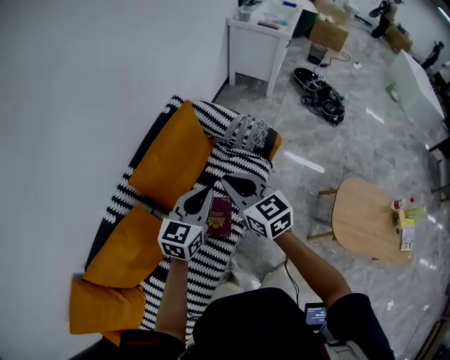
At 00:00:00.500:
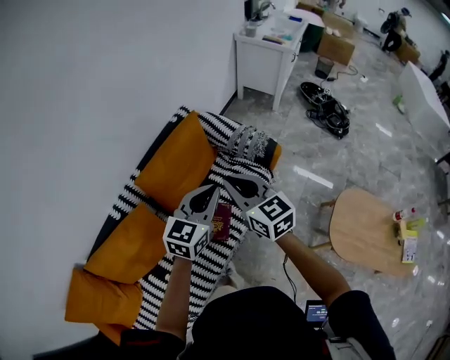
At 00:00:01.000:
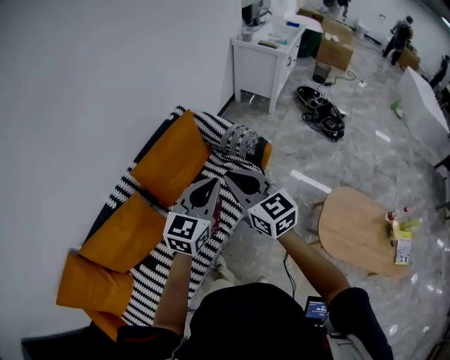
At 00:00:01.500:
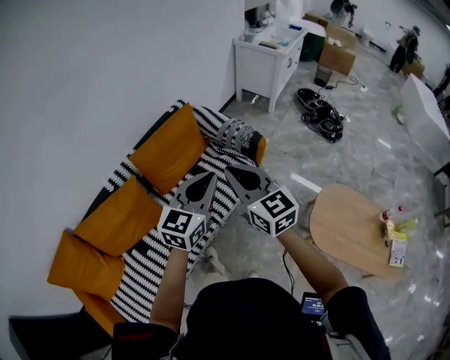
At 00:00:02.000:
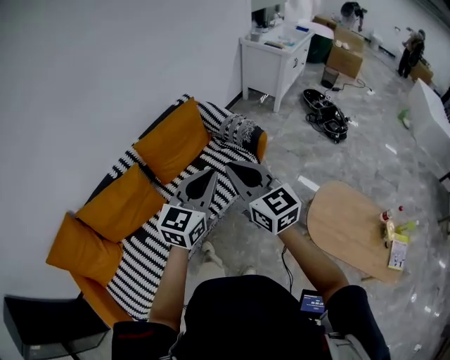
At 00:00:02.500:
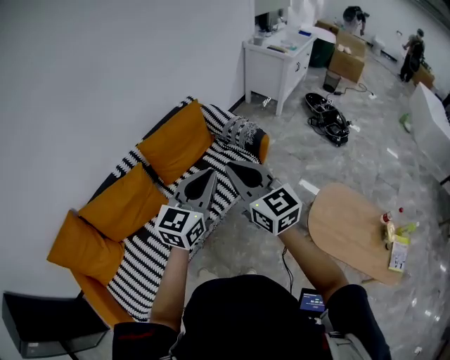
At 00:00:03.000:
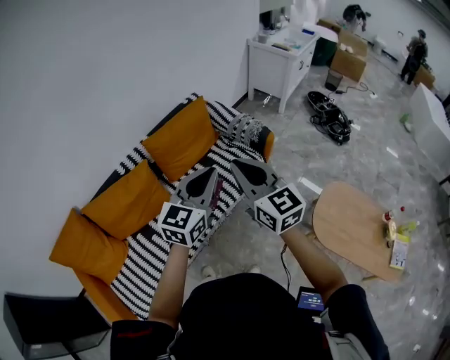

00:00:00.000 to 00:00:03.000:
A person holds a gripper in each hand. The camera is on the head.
00:00:00.000 to 00:00:01.500: Both grippers travel together backward, to the right and upward, roughly 25 cm.
00:00:01.500 to 00:00:03.000: Both grippers move backward, about 5 cm.

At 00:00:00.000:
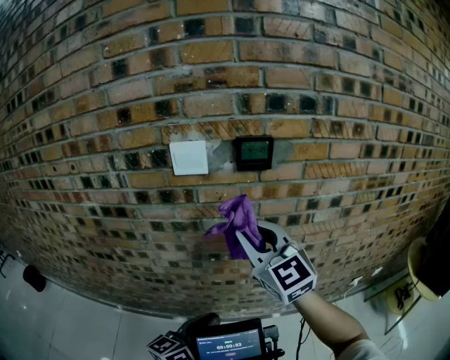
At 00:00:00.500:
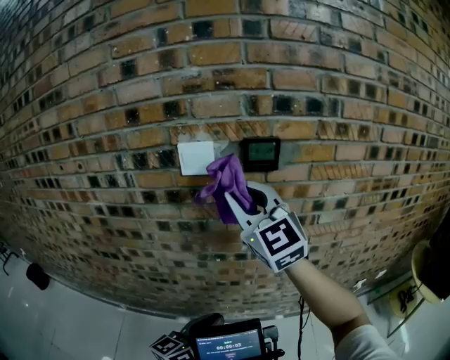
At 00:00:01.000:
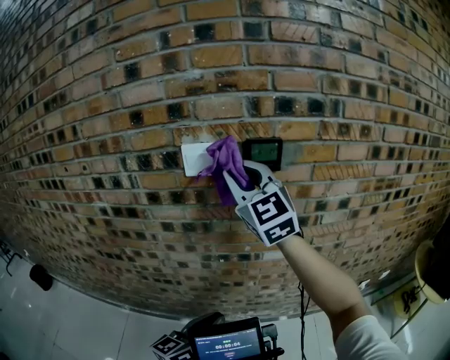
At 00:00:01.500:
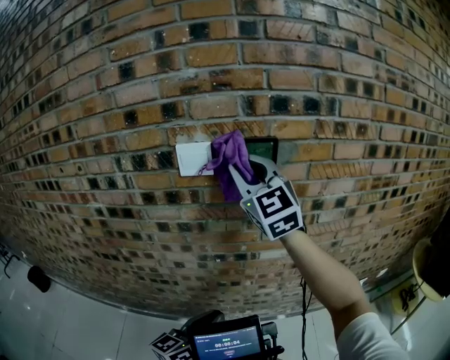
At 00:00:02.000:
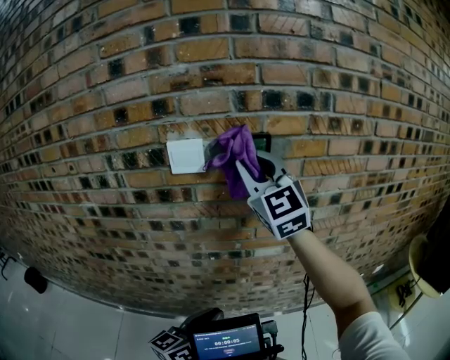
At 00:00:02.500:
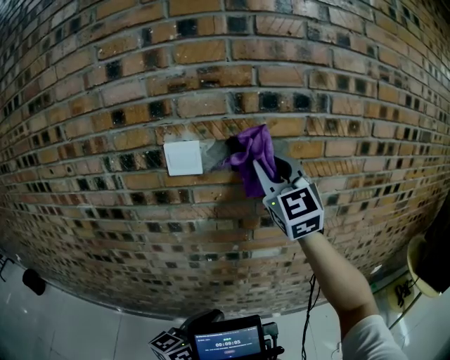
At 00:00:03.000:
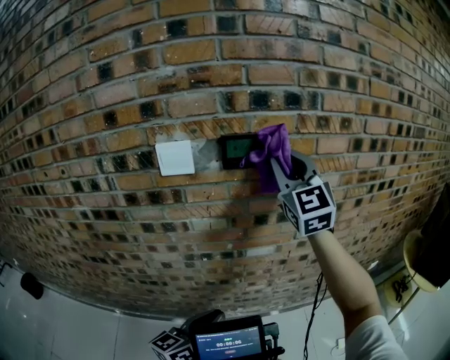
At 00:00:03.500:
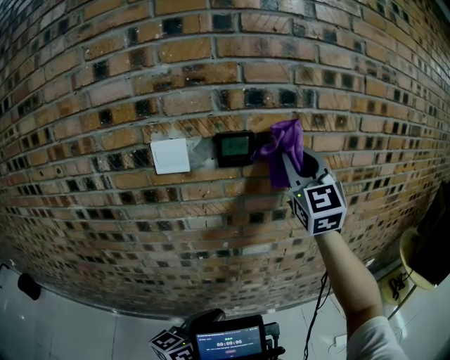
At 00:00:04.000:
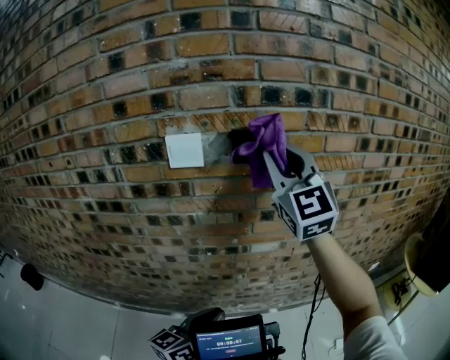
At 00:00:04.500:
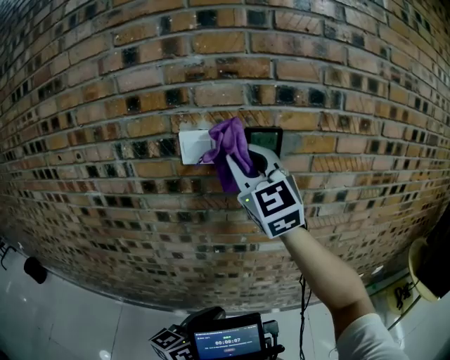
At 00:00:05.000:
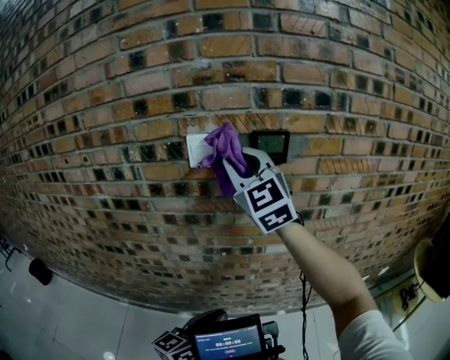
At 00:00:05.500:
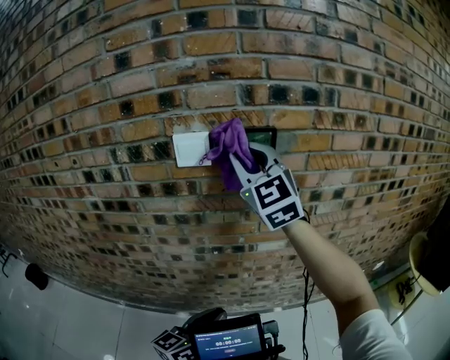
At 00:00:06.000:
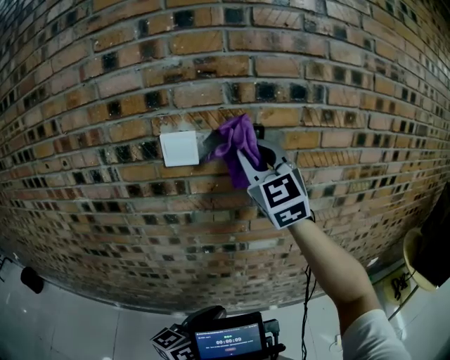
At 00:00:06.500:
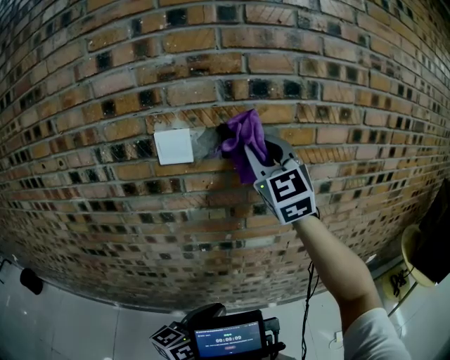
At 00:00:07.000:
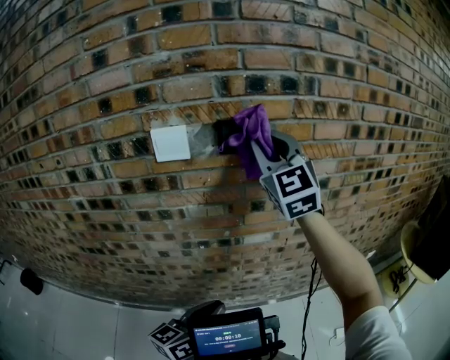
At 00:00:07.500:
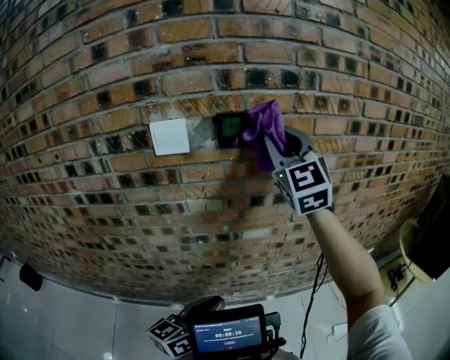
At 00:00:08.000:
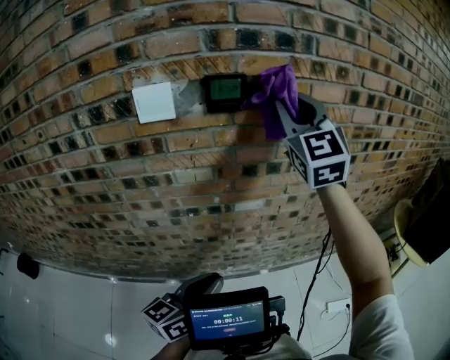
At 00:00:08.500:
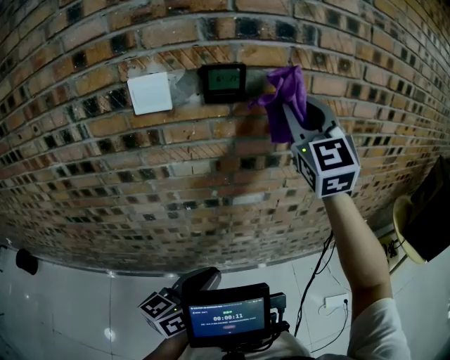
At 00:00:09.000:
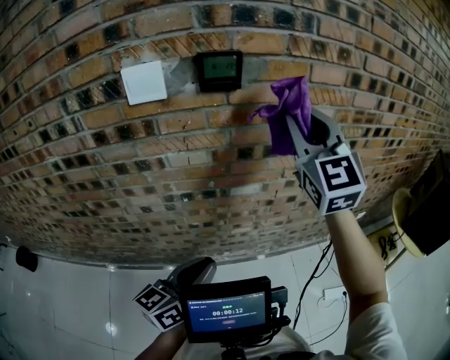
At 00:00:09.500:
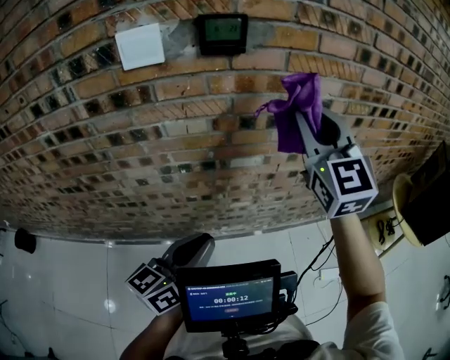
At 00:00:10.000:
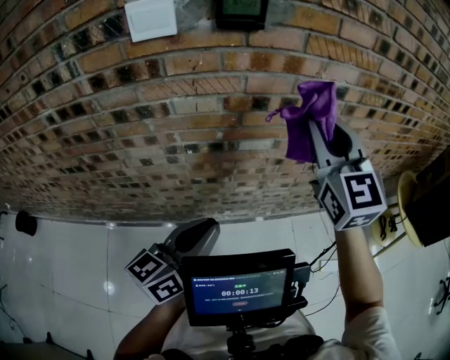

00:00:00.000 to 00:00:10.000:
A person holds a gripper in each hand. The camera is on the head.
00:00:00.000 to 00:00:02.000: The right gripper shifts about 15 cm upward and forward.
00:00:02.000 to 00:00:04.000: The right gripper goes approximately 5 cm to the right.
00:00:04.000 to 00:00:06.000: The right gripper moves roughly 15 cm to the left and comes back.
00:00:06.000 to 00:00:08.000: The right gripper moves to the right, approximately 15 cm.
00:00:08.000 to 00:00:10.000: The right gripper heads downward and backward, covering about 15 cm.

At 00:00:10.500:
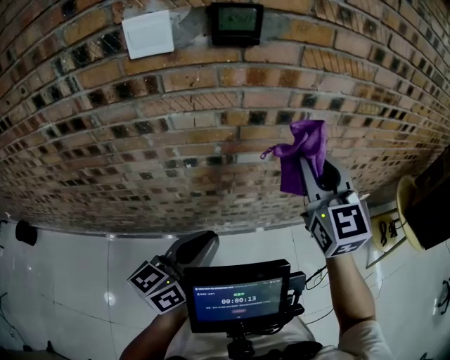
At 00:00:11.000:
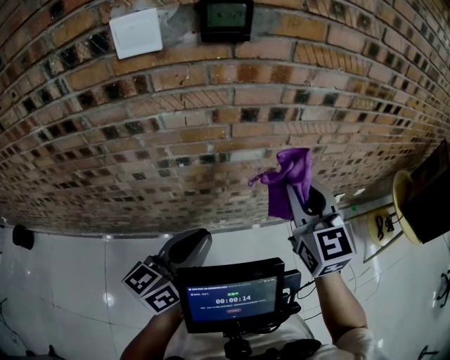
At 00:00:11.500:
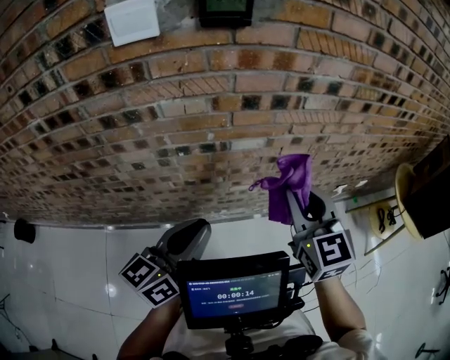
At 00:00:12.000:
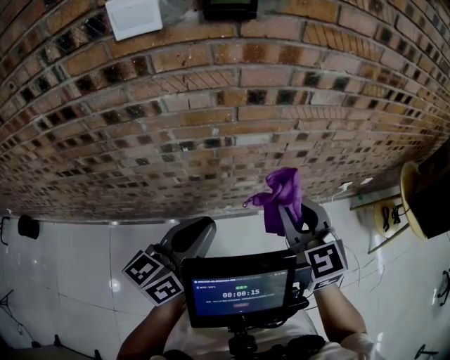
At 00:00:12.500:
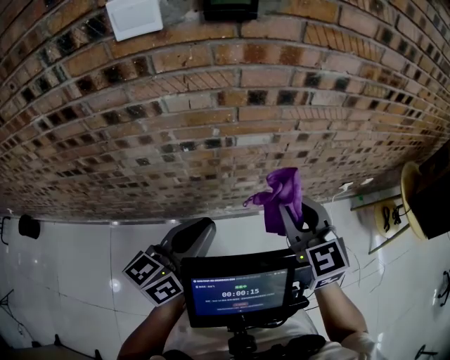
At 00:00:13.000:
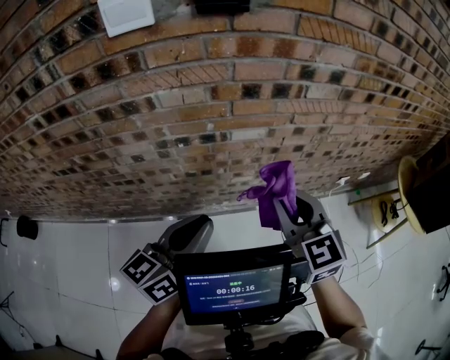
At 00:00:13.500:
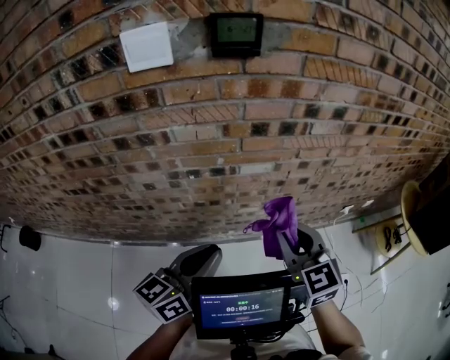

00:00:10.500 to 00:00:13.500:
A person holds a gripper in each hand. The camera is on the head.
00:00:10.500 to 00:00:12.000: The right gripper is displaced downward and backward by approximately 15 cm.
00:00:12.000 to 00:00:13.500: The grippers move only a little.

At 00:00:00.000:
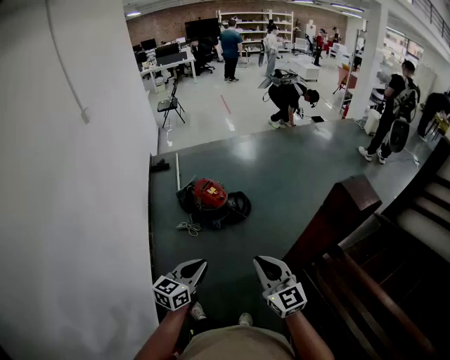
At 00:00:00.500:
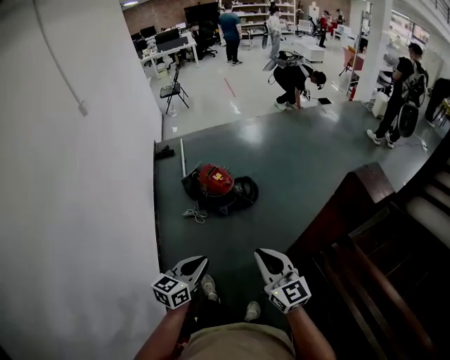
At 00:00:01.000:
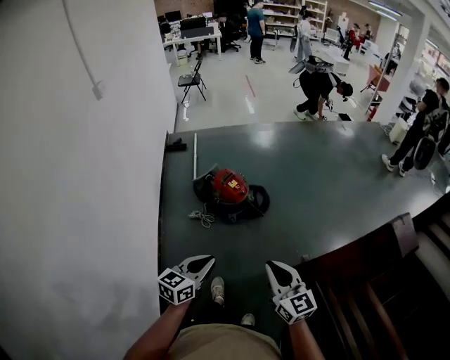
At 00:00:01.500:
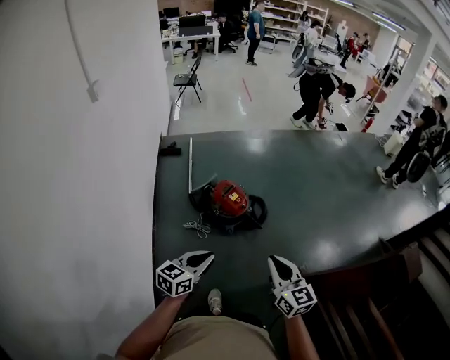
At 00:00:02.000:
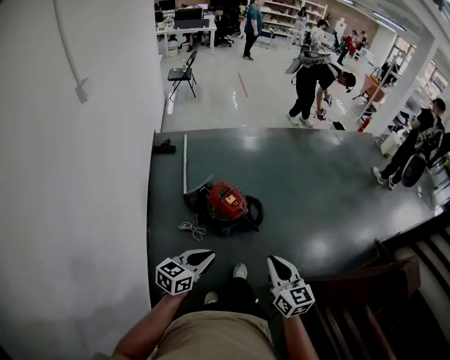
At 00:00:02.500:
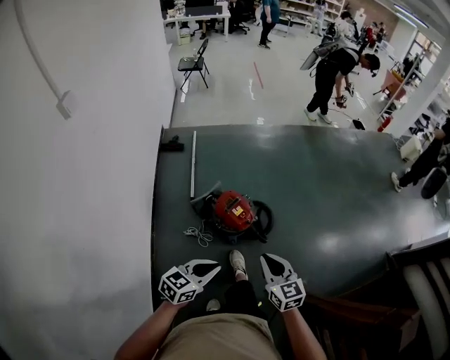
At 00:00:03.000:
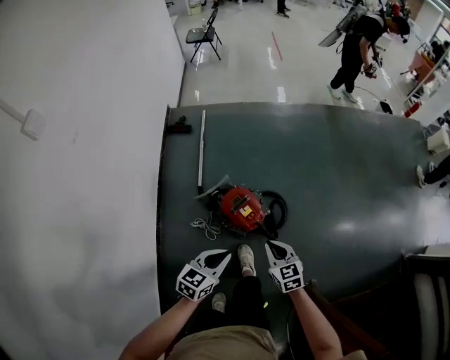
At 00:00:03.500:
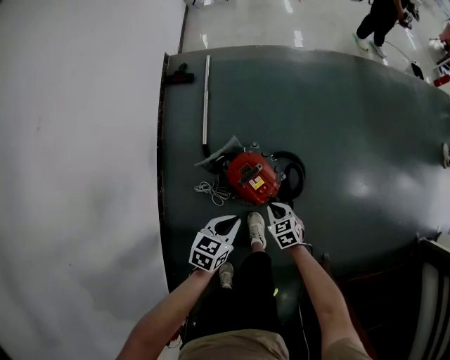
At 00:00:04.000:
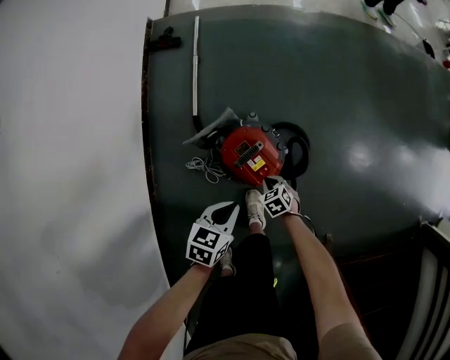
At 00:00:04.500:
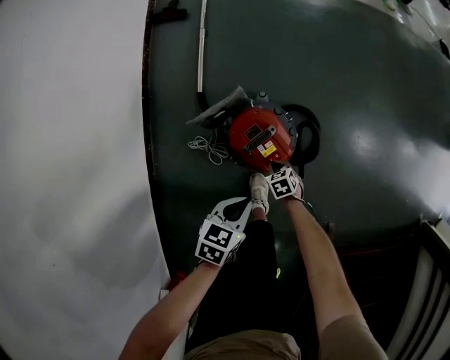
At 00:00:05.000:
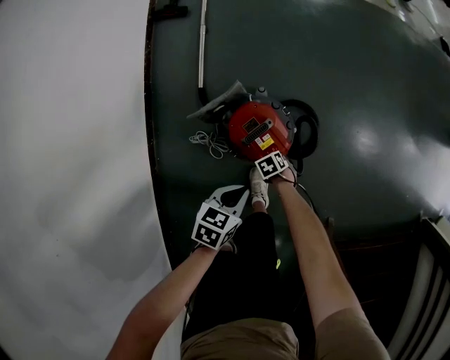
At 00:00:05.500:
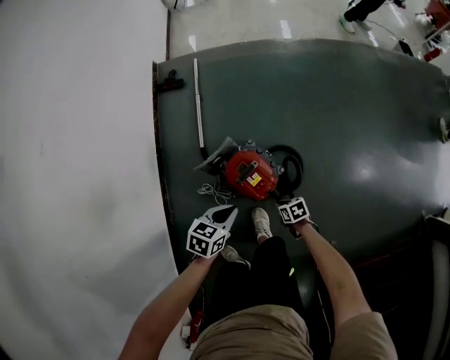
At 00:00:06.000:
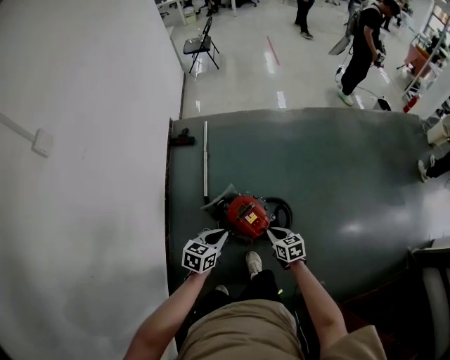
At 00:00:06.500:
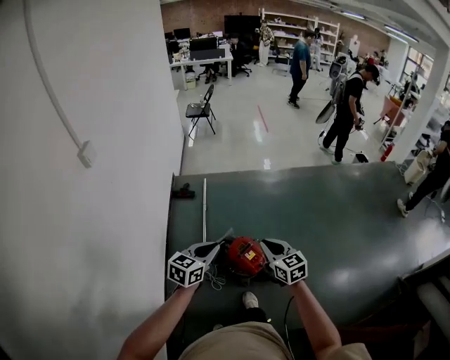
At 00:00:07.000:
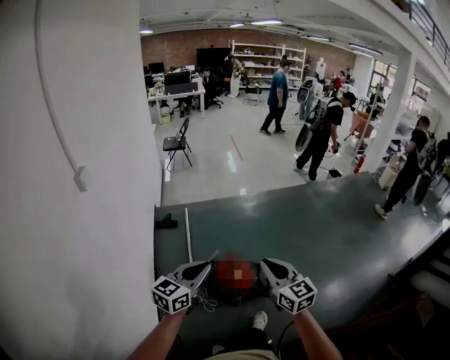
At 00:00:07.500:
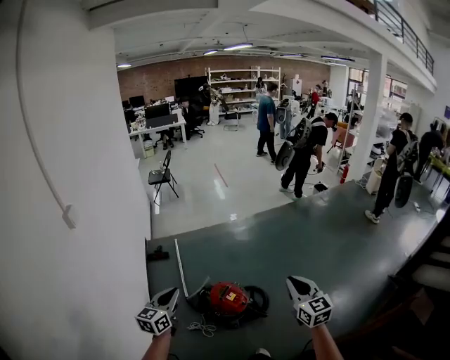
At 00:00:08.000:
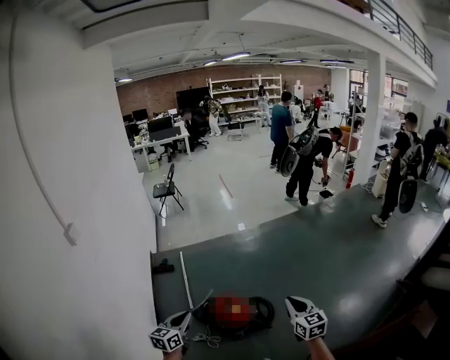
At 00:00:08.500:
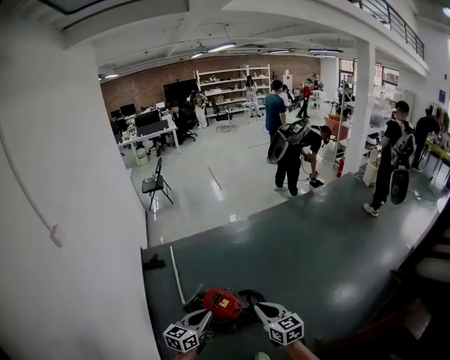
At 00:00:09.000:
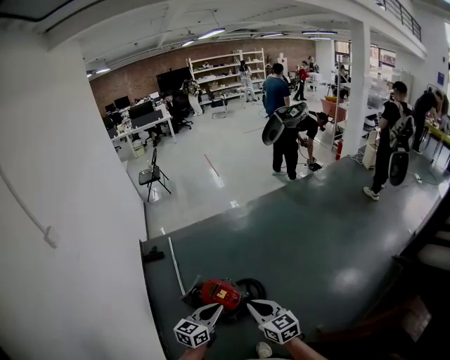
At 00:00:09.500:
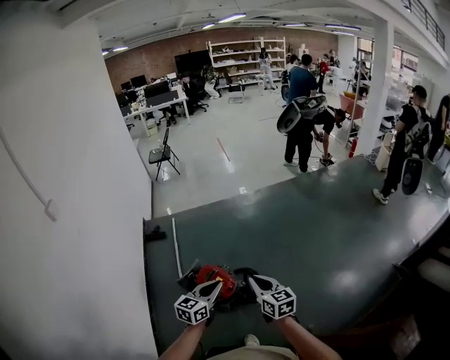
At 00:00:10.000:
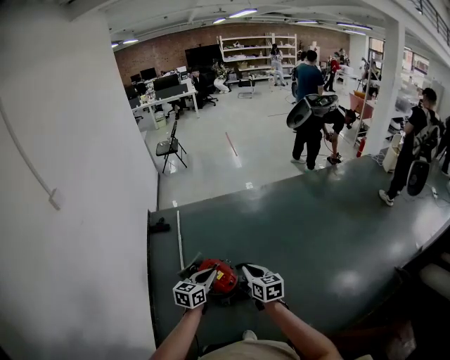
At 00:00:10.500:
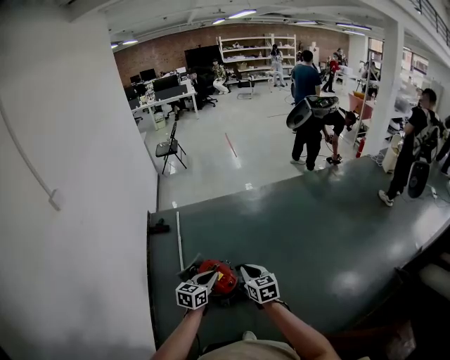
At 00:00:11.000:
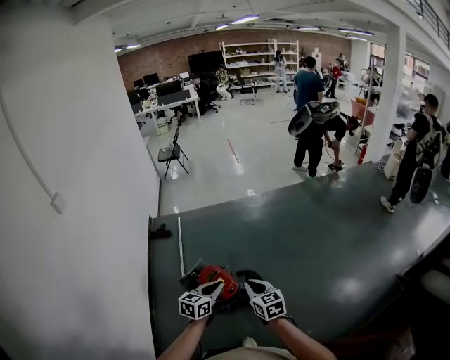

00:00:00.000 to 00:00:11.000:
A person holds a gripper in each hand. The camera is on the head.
00:00:00.000 to 00:00:02.000: The grippers both shift forward and to the left by some 35 cm.
00:00:02.000 to 00:00:03.500: The pair of grippers is taken forward, about 40 cm. The right gripper is displaced downward by some 50 cm, and points its fingers roughly 40 degrees further downward; the left gripper goes some 30 cm downward, and turns by roughly 30 degrees.
00:00:03.500 to 00:00:05.500: The left gripper travels downward and back again, about 15 cm each way, while the right gripper reaches roughly 25 cm downward, then returns, and swivels about 30 degrees.
00:00:05.500 to 00:00:07.500: The right gripper travels upward by approximately 70 cm, and tilts its fingers about 50 degrees upward. Meanwhile the left gripper heads upward, covering roughly 40 cm, and tips its fingers upward by some 40 degrees.
00:00:07.500 to 00:00:09.000: The right gripper shifts some 10 cm downward. The left gripper travels to the right by about 30 cm.
00:00:09.000 to 00:00:11.000: Both grippers move forward and downward, some 10 cm.
